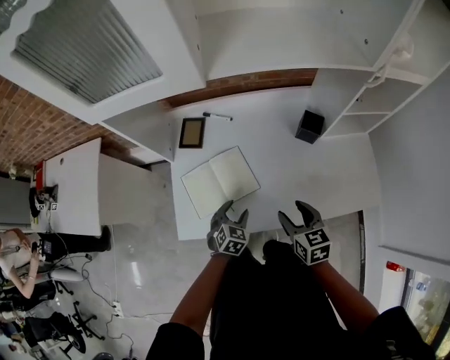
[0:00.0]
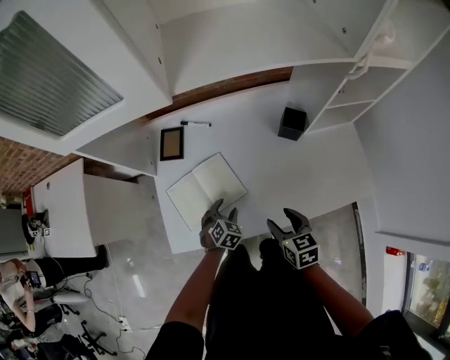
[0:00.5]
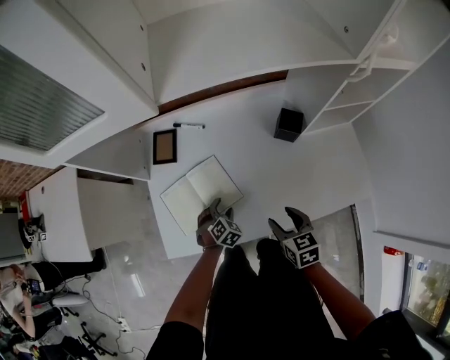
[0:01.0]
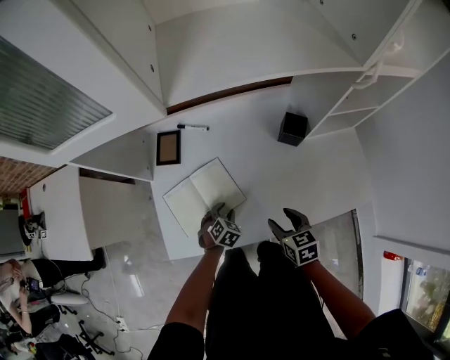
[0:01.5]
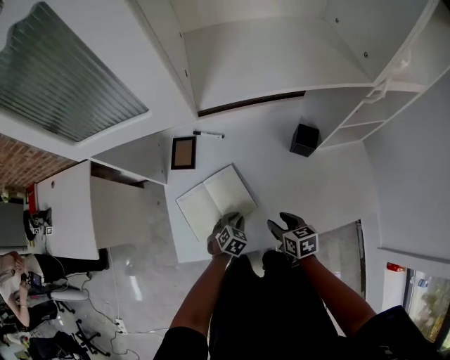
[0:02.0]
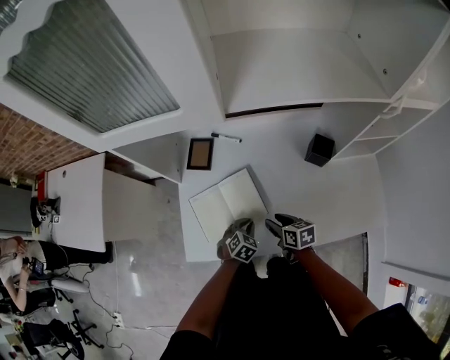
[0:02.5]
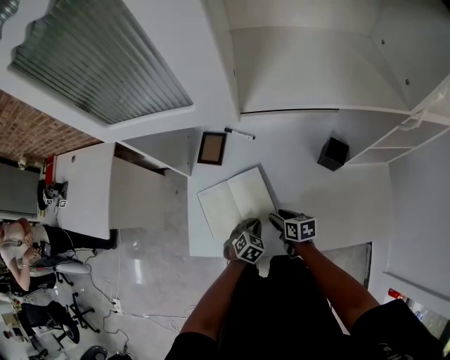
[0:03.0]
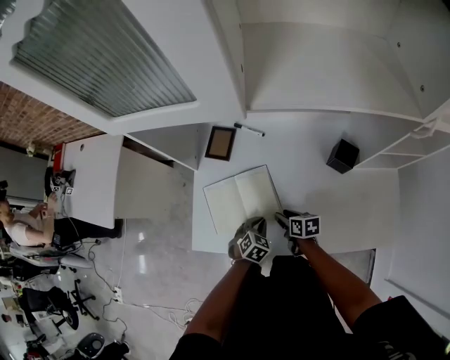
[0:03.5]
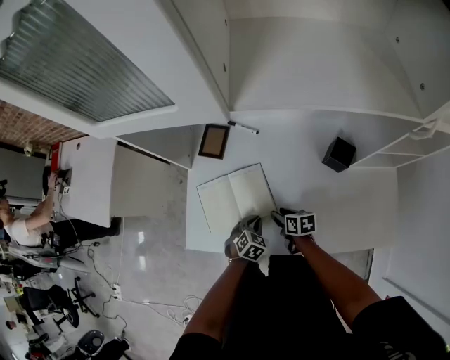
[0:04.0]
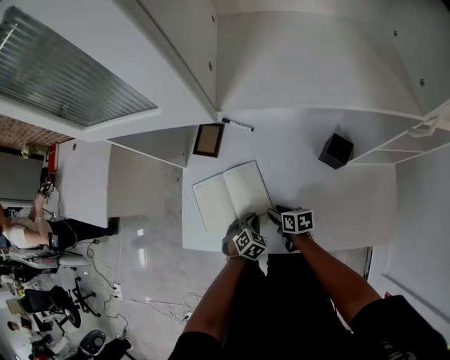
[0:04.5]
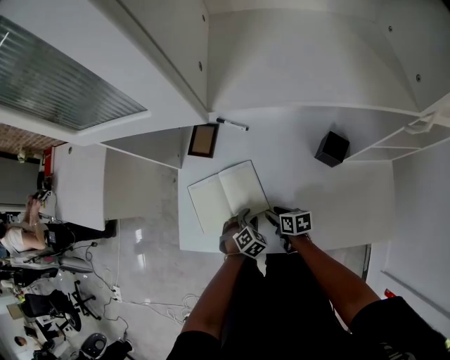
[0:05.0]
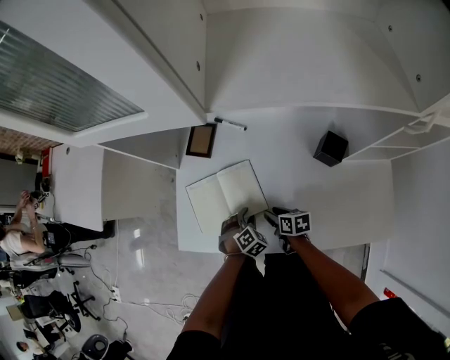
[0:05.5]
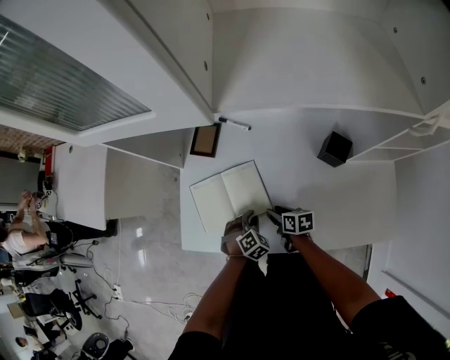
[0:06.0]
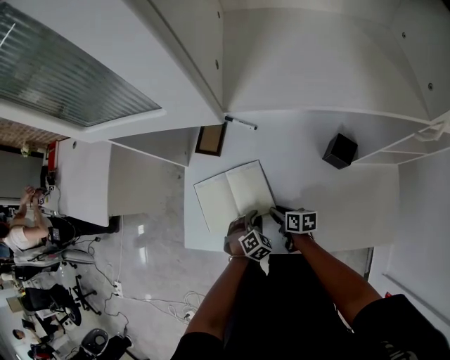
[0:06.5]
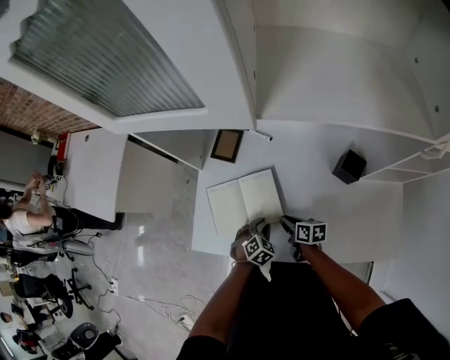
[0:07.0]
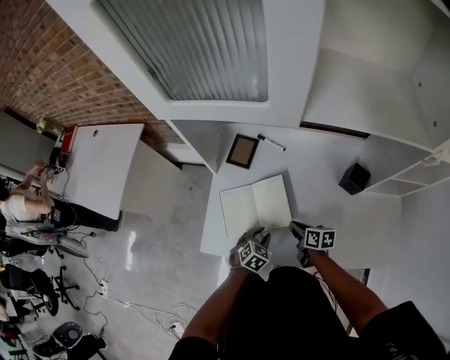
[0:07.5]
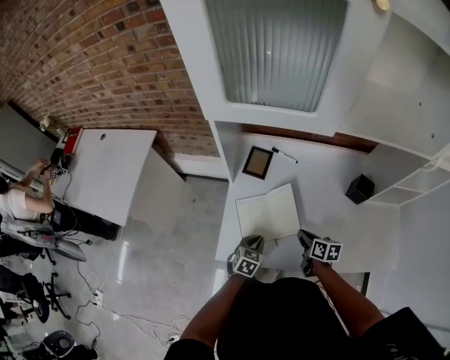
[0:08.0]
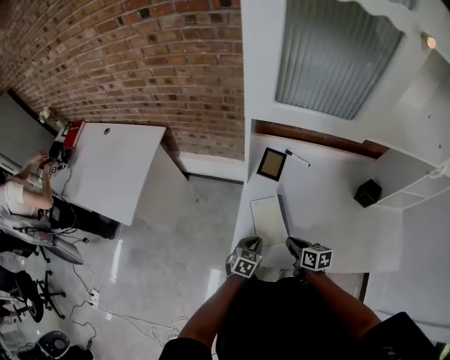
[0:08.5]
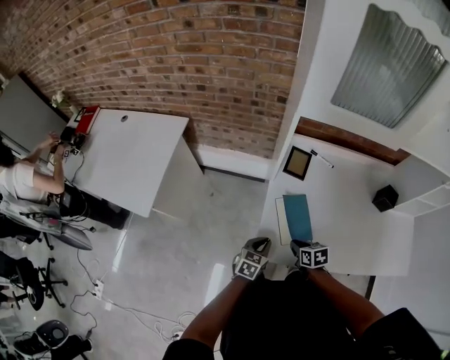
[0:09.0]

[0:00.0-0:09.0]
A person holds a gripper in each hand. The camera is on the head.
0:00.0 to 0:02.0: The grippers both shift downward by about 10 cm. The left gripper closes up.
0:02.0 to 0:04.5: The right gripper is displaced downward and forward by about 10 cm, and turns by approximately 20 degrees.
0:04.5 to 0:07.0: The right gripper closes up.
0:07.0 to 0:09.0: Both grippers move to the left, roughly 30 cm. The right gripper rotates approximately 20 degrees; the left gripper rotates approximately 40 degrees.

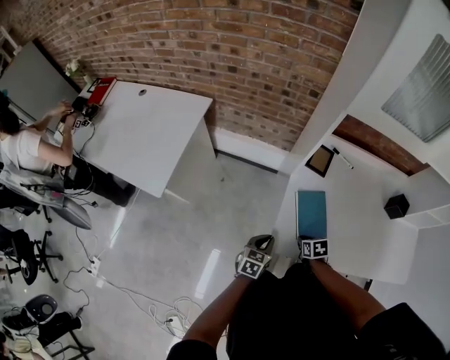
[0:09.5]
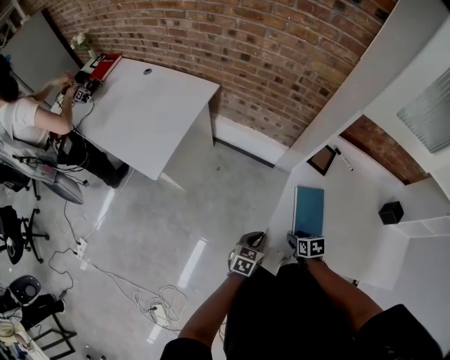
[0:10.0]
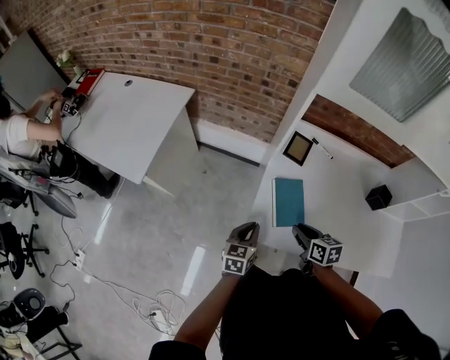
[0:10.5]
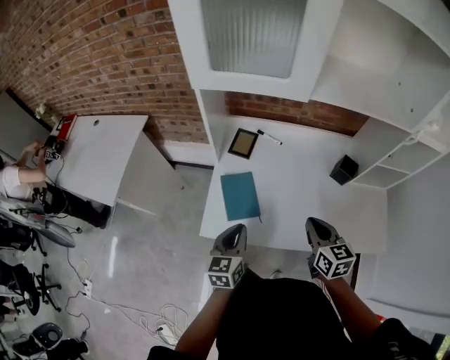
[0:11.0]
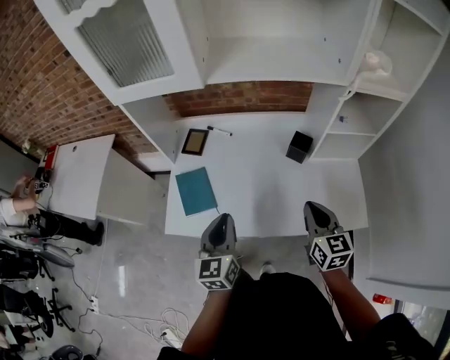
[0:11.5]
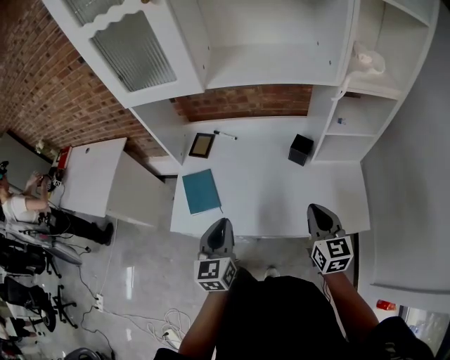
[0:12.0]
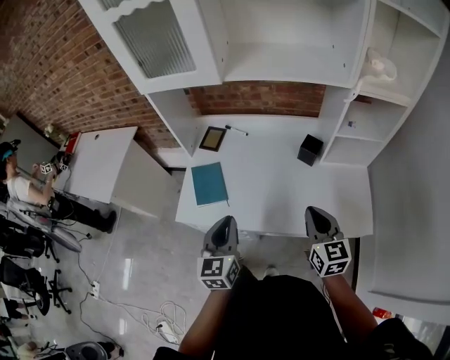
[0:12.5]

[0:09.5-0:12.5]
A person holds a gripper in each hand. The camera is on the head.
0:09.5 to 0:11.0: The grippers both shift upward and to the right by roughly 30 cm. The right gripper tips its fingers upward by approximately 40 degrees, and opens and closes again.
0:11.0 to 0:12.5: The right gripper heads to the right and backward, covering roughly 20 cm, while the left gripper travels to the right, backward and upward by approximately 20 cm.

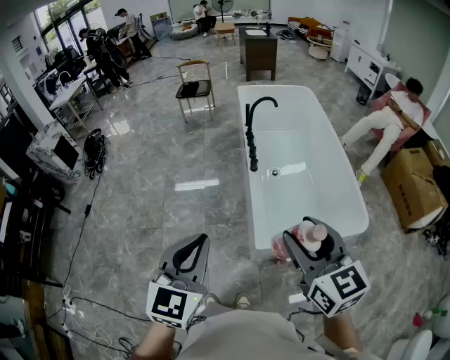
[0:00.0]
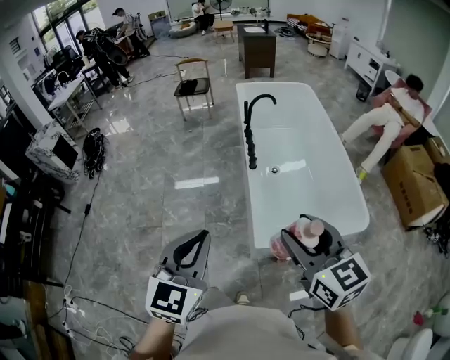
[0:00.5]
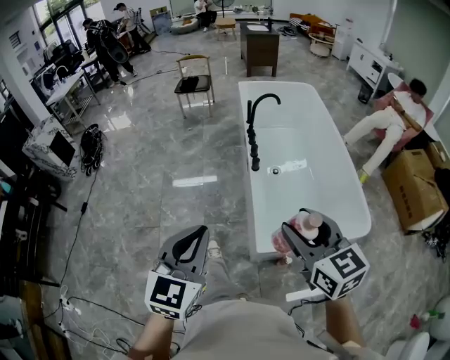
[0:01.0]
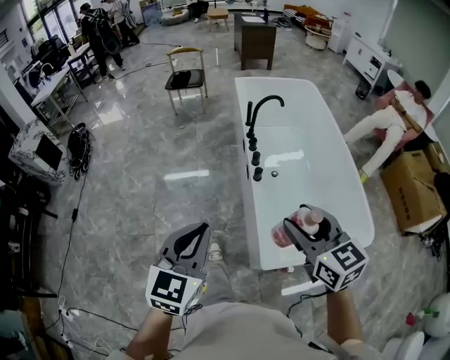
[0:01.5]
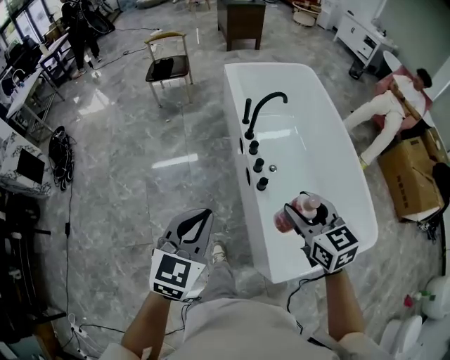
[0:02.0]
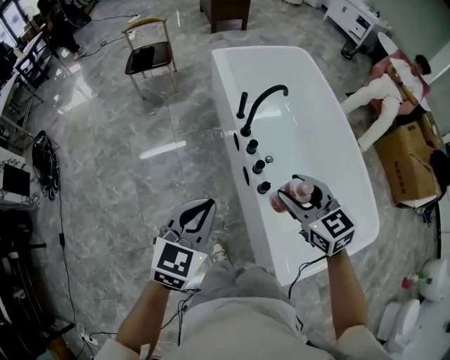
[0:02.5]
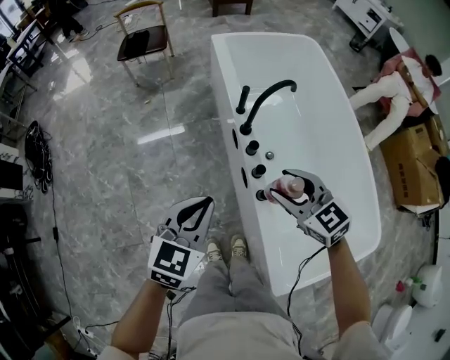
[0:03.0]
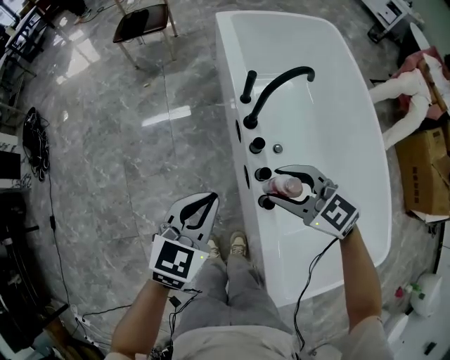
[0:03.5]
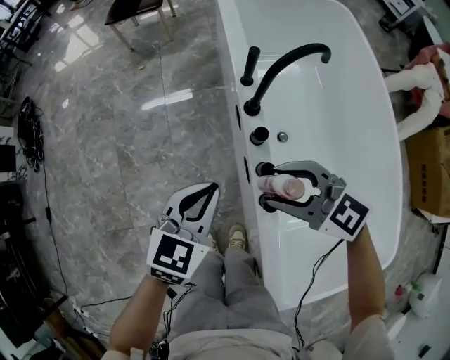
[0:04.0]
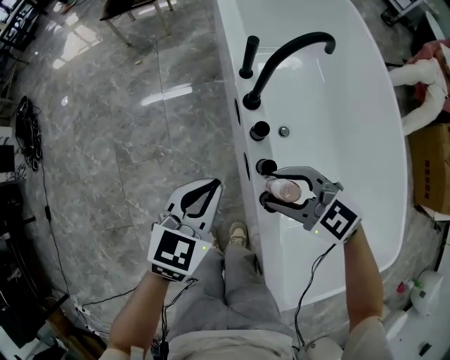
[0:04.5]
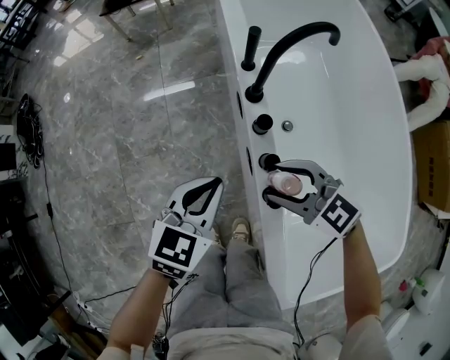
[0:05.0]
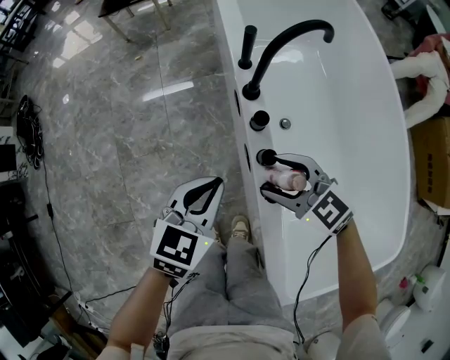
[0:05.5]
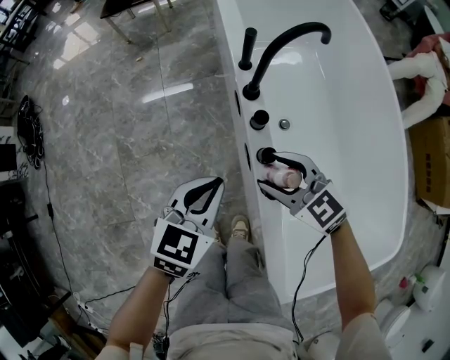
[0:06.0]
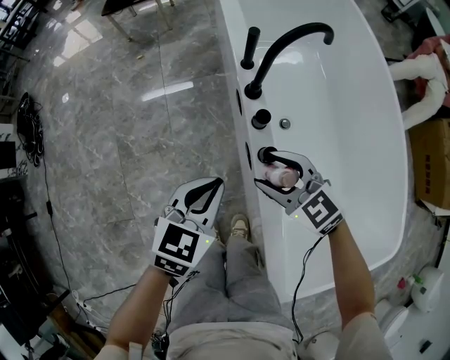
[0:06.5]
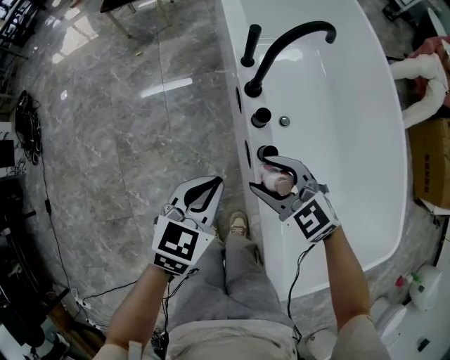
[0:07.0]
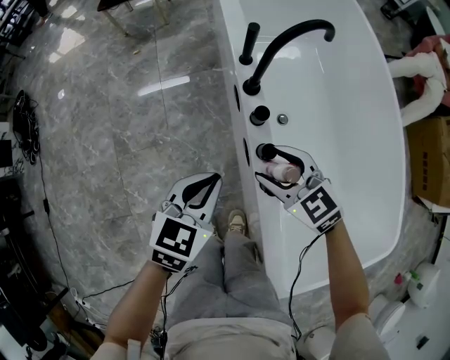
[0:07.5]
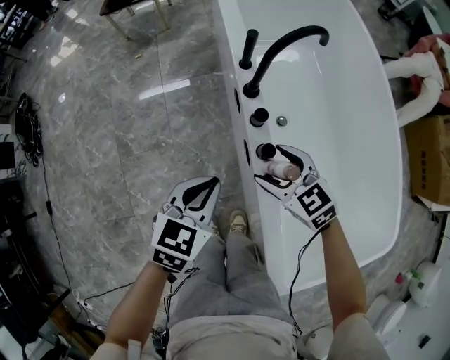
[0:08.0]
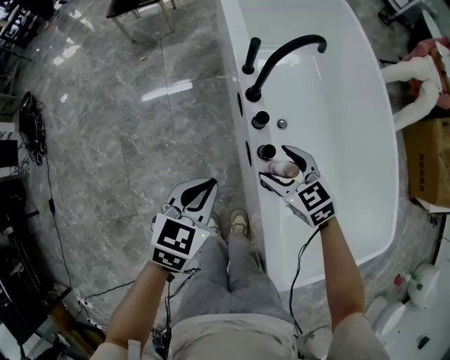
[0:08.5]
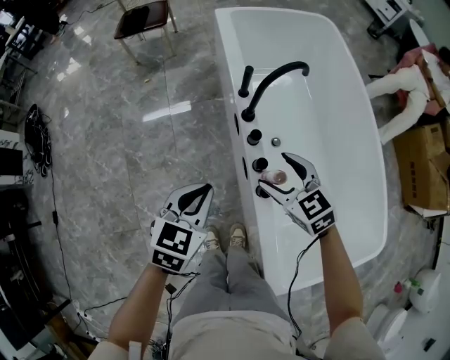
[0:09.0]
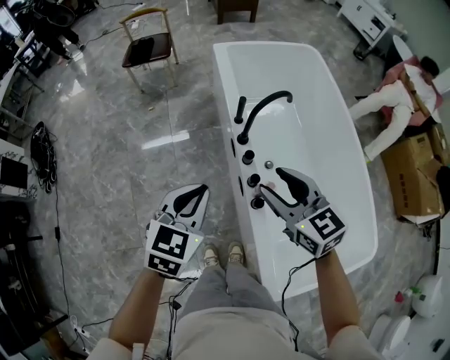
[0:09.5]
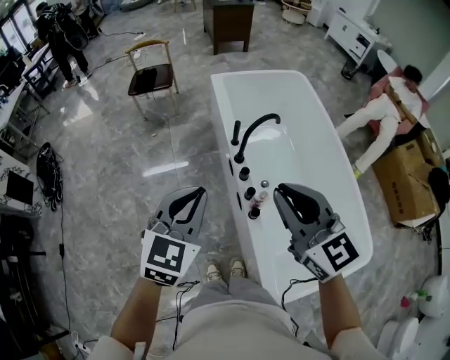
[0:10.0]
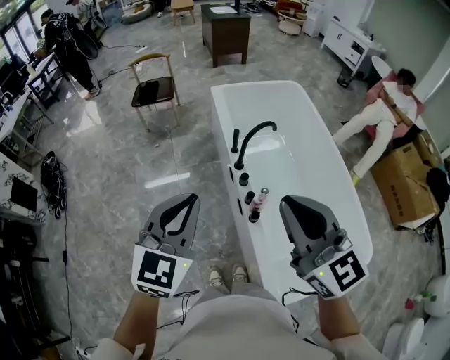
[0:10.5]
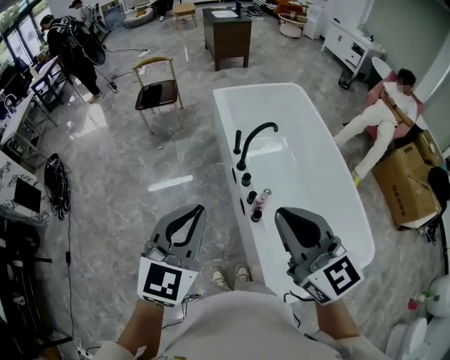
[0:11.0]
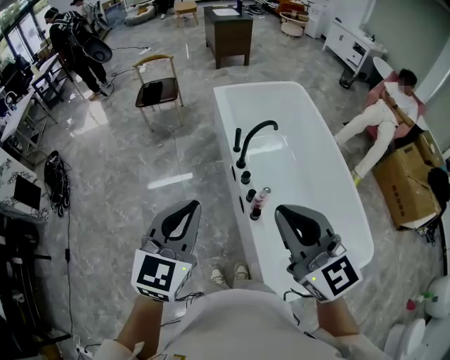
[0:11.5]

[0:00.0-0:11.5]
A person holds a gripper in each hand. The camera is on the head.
0:00.0 to 0:02.0: Both grippers travel together forward, roughly 40 cm.
0:02.0 to 0:04.0: Both grippers move downward and forward, about 35 cm. The right gripper rotates roughly 50 degrees.
0:04.0 to 0:06.0: The right gripper goes approximately 10 cm downward.
0:06.0 to 0:07.5: The grippers make only small movements.
0:07.5 to 0:09.5: The grippers both shift upward by about 25 cm. The right gripper swivels roughly 20 degrees.
0:09.5 to 0:11.5: The grippers both shift upward and backward by some 25 cm. The right gripper changes its angle by some 20 degrees, and closes its fingers.

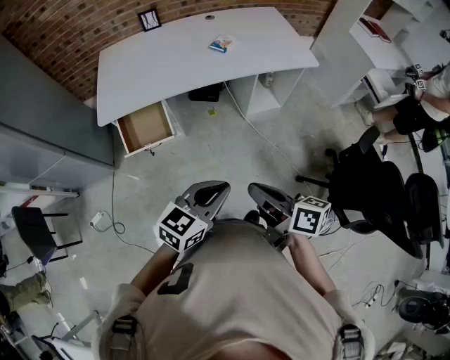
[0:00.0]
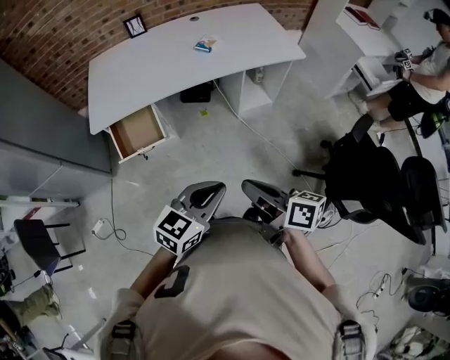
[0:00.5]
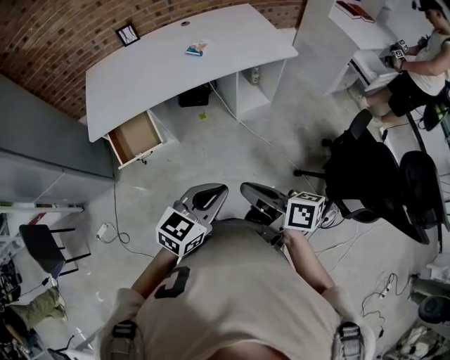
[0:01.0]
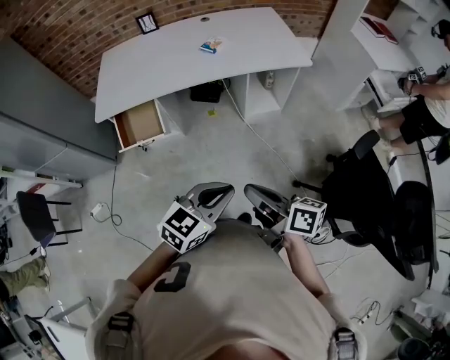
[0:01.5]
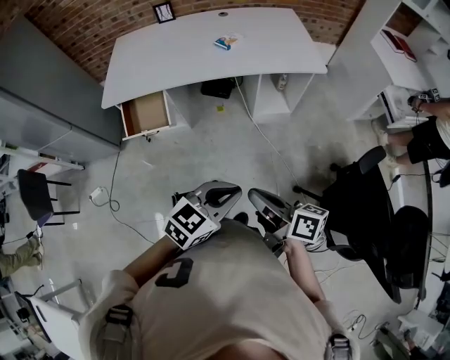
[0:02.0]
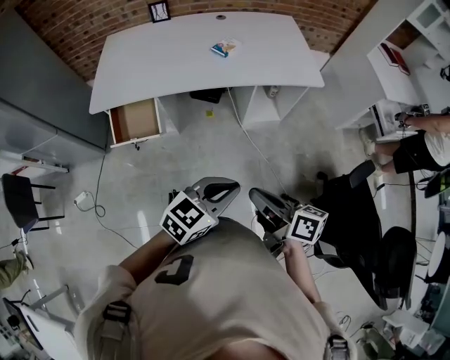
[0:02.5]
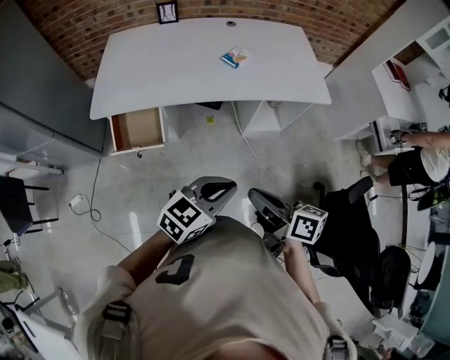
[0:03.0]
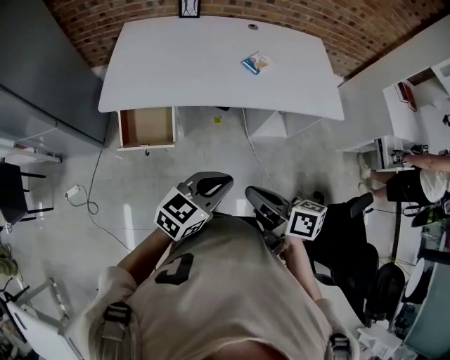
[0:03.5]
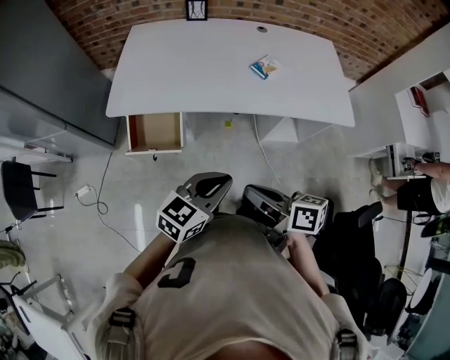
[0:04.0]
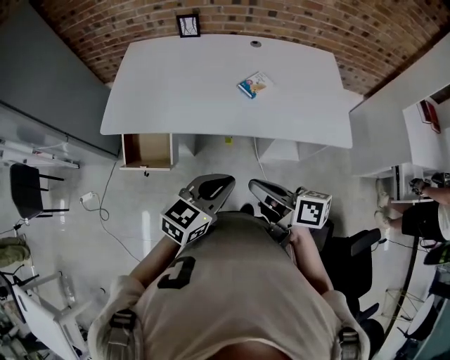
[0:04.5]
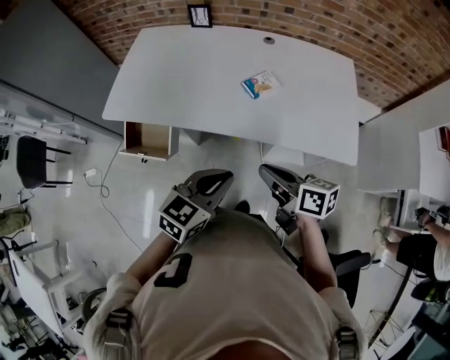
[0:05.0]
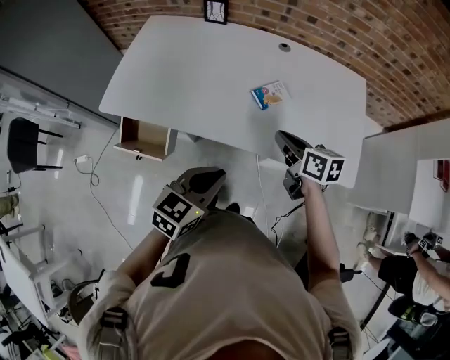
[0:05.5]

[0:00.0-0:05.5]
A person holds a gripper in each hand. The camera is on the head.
0:00.0 to 0:02.0: The two grippers go some 15 cm to the right.
0:02.0 to 0:03.5: Both grippers travel together forward and to the left, roughly 25 cm.
0:03.5 to 0:05.5: The right gripper heads forward and to the right, covering about 40 cm, and turns by approximately 20 degrees. The left gripper heads forward and to the right, covering approximately 25 cm, and rotates some 30 degrees.
